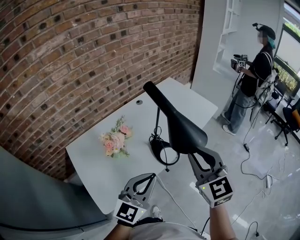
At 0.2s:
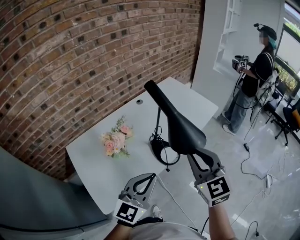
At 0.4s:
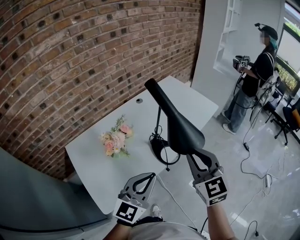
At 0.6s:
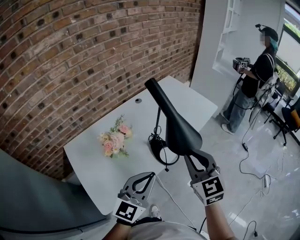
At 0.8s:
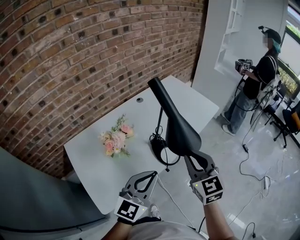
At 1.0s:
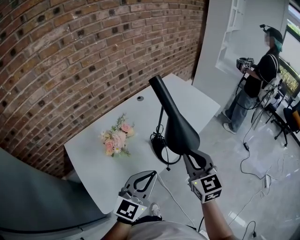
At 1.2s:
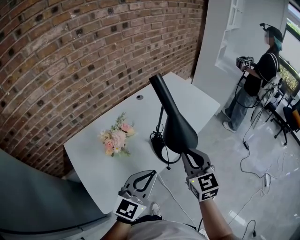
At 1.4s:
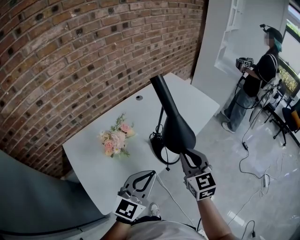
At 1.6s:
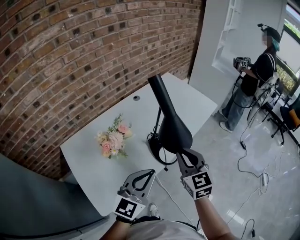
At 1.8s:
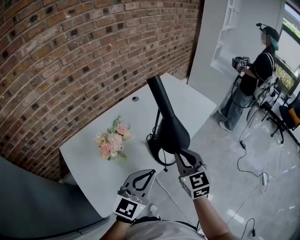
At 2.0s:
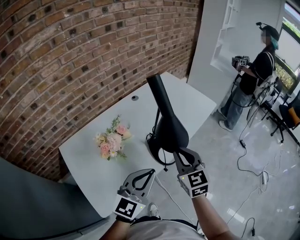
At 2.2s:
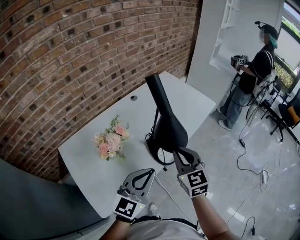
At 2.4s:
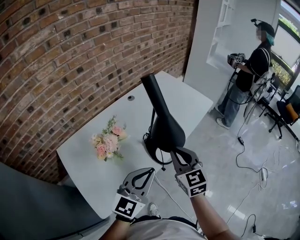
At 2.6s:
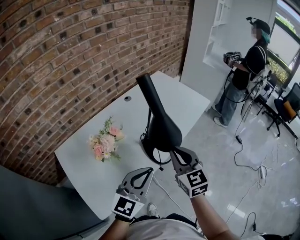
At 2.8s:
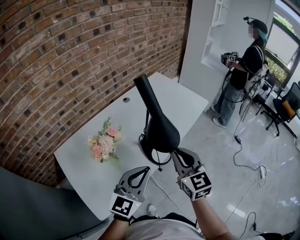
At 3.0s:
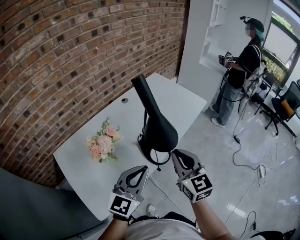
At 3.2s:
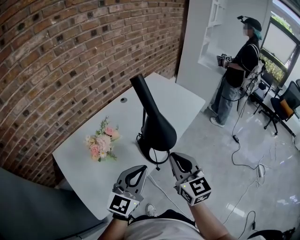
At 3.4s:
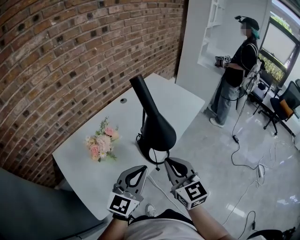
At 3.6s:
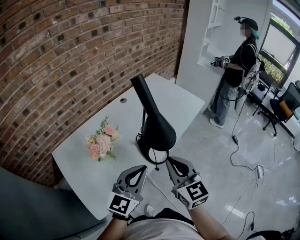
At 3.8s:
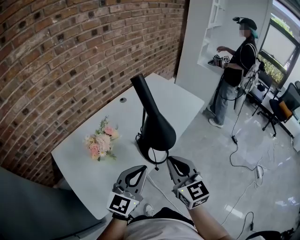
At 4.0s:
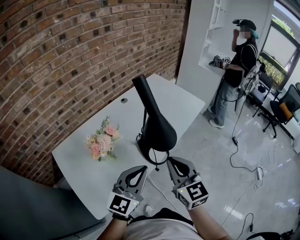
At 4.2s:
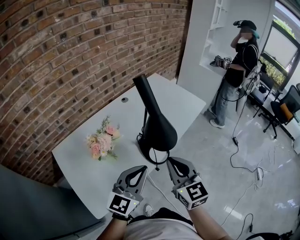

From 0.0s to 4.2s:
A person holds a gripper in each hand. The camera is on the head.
From 0.0s to 1.4s: The right gripper is displaced downward by some 10 cm.
From 1.4s to 4.2s: There are only small adjustments of the grippers.

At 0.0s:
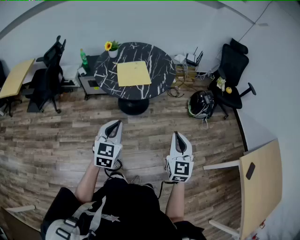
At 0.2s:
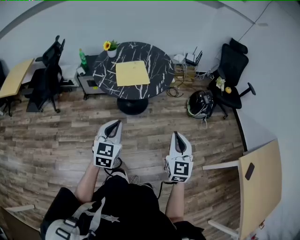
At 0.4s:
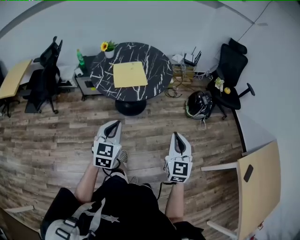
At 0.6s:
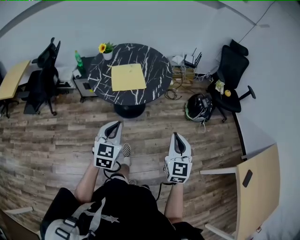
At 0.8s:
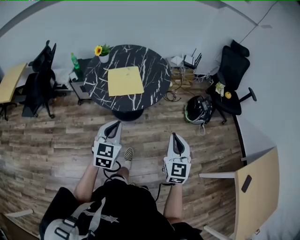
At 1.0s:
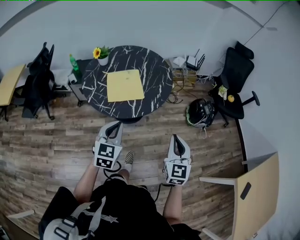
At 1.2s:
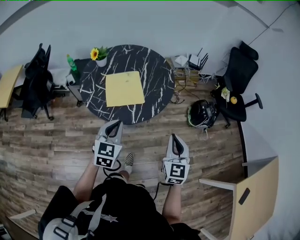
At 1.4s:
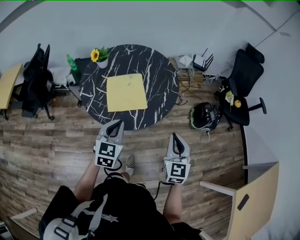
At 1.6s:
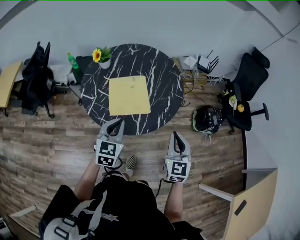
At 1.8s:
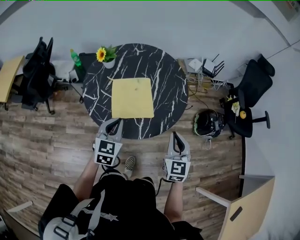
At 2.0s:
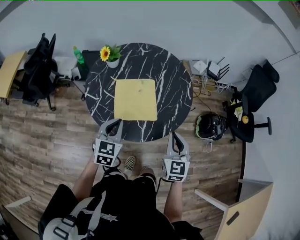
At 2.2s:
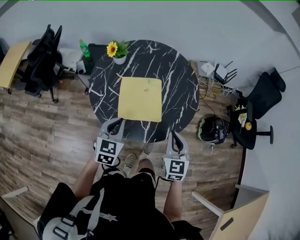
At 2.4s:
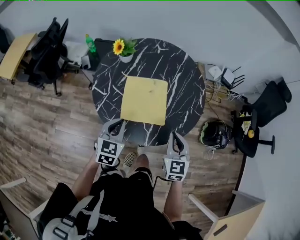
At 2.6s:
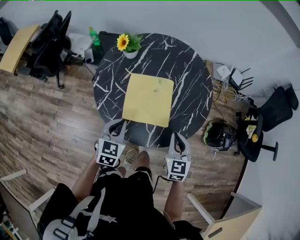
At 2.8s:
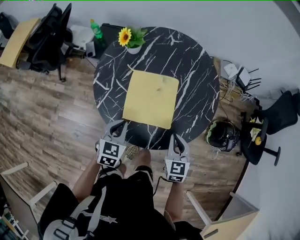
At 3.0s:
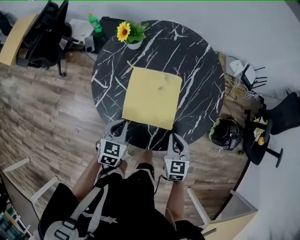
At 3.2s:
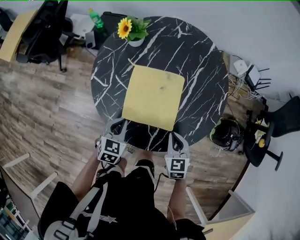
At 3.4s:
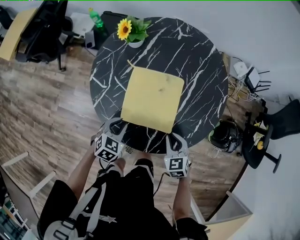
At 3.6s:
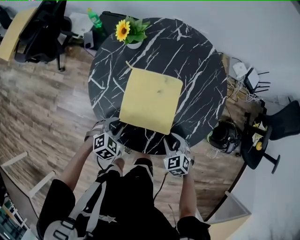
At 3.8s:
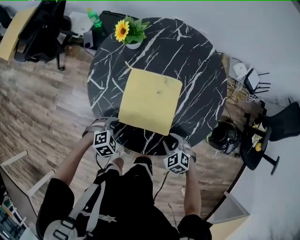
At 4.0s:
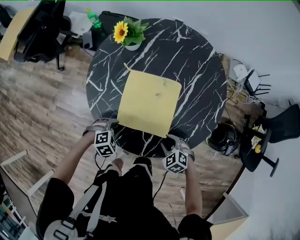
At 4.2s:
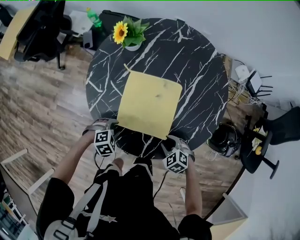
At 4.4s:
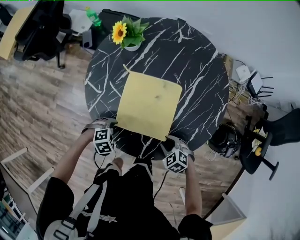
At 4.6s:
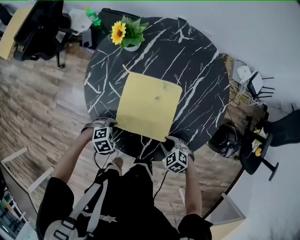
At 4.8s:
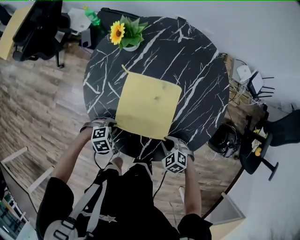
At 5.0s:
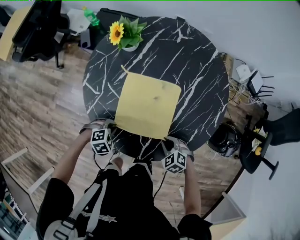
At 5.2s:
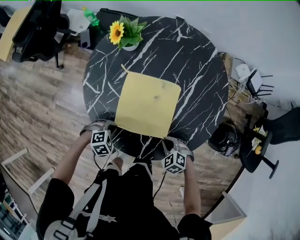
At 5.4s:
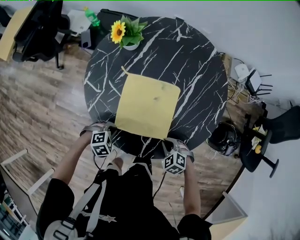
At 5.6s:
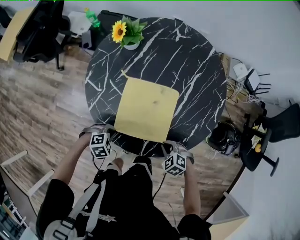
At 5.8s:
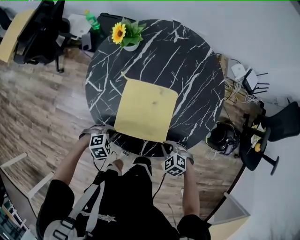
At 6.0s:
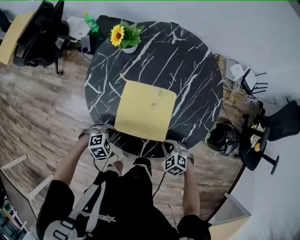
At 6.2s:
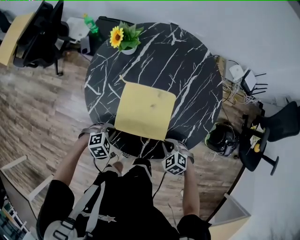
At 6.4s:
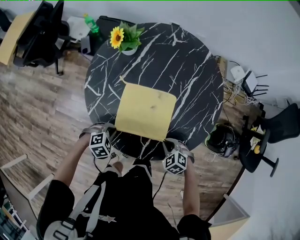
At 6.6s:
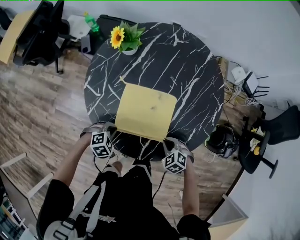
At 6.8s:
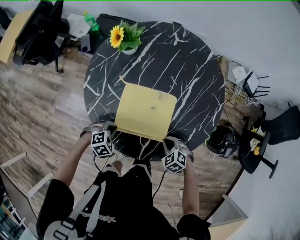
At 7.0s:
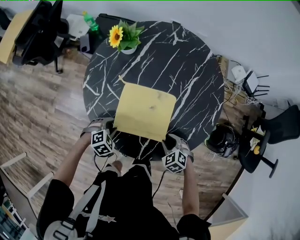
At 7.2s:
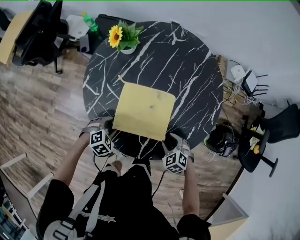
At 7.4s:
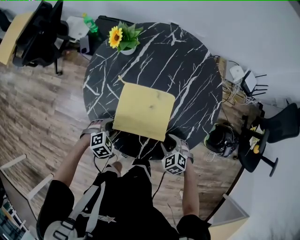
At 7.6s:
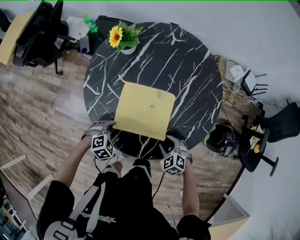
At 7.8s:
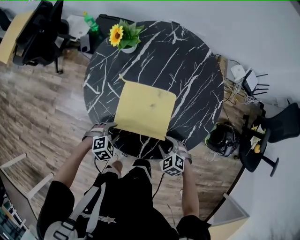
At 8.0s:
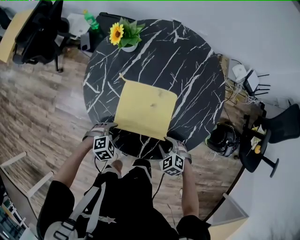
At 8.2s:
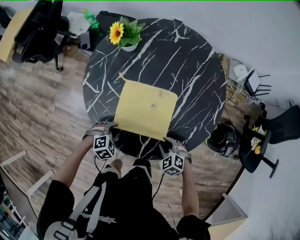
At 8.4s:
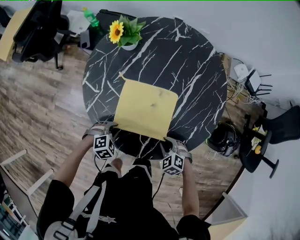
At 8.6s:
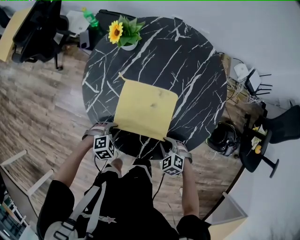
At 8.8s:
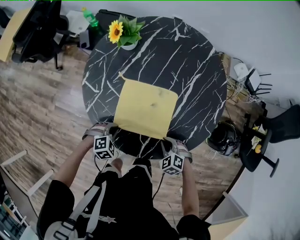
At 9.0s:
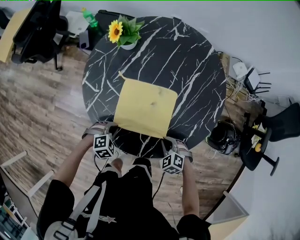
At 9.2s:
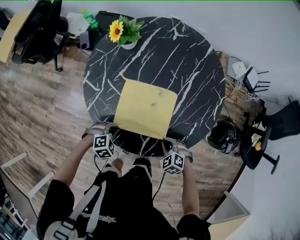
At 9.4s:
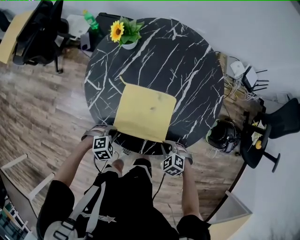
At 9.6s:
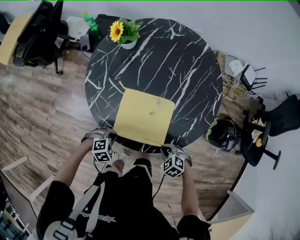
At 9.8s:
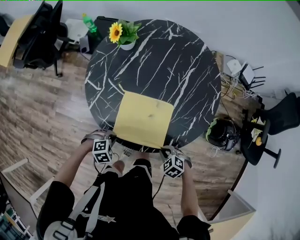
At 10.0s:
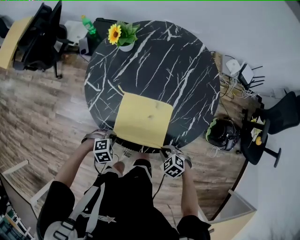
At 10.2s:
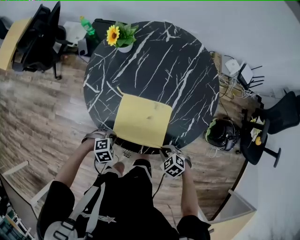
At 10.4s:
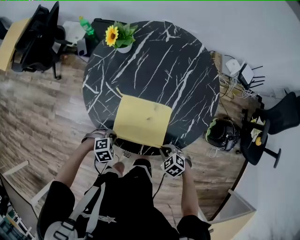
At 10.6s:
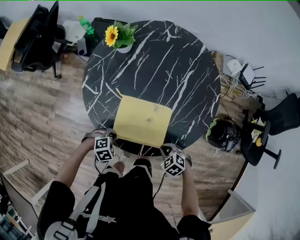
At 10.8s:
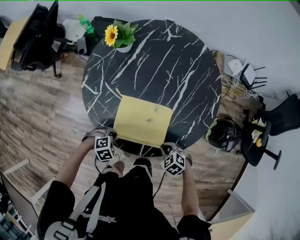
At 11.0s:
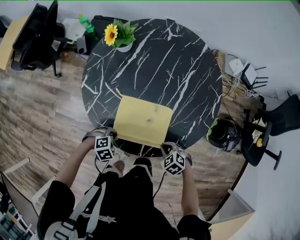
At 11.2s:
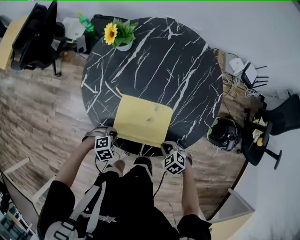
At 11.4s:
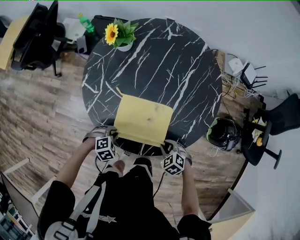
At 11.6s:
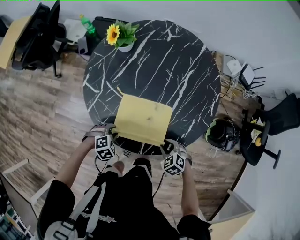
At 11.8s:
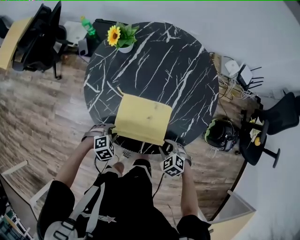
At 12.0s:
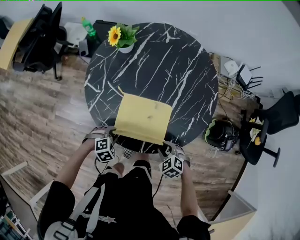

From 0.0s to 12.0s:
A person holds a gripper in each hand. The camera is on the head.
From 0.0s to 1.6s: Both grippers travel together forward, roughly 35 cm.
From 1.6s to 3.0s: The grippers both shift downward, forward and to the left by roughly 25 cm. The right gripper turns by about 30 degrees, while the left gripper changes its angle by roughly 20 degrees.
From 3.0s to 4.4s: The grippers both shift downward by approximately 15 cm. The right gripper changes its angle by roughly 50 degrees, and opens; the left gripper tilts its fingers roughly 30 degrees downward, and opens.
From 4.4s to 6.0s: The right gripper closes its fingers. Meanwhile the left gripper closes.
From 6.0s to 7.6s: The right gripper opens; the left gripper opens its fingers.
From 7.6s to 9.0s: The right gripper closes. Meanwhile the left gripper closes.
From 9.0s to 10.4s: The right gripper moves about 5 cm, while the left gripper moves approximately 5 cm.
From 10.4s to 12.0s: The left gripper opens its fingers. The right gripper opens.

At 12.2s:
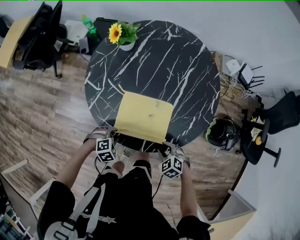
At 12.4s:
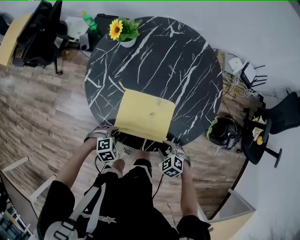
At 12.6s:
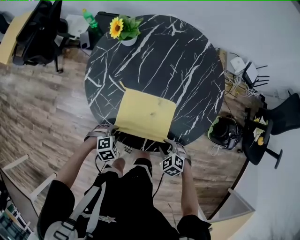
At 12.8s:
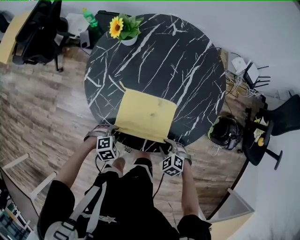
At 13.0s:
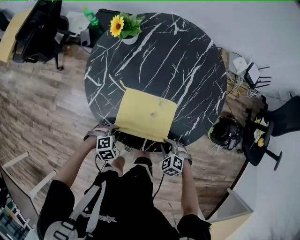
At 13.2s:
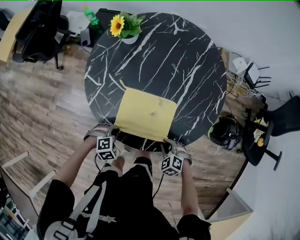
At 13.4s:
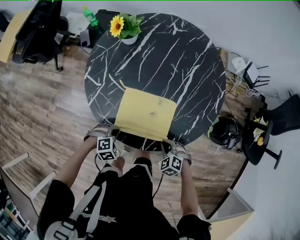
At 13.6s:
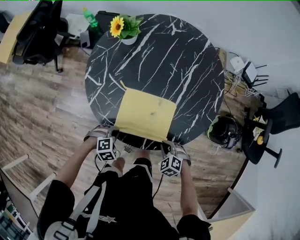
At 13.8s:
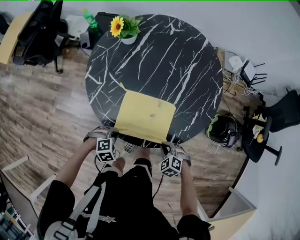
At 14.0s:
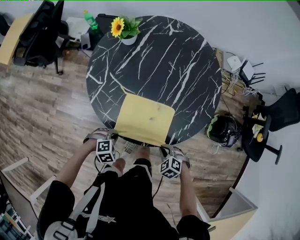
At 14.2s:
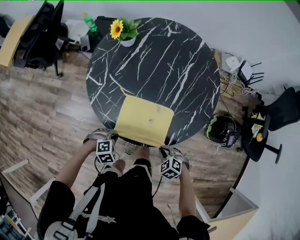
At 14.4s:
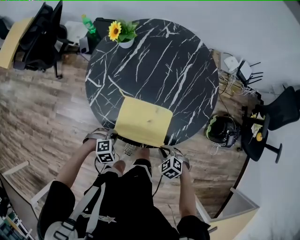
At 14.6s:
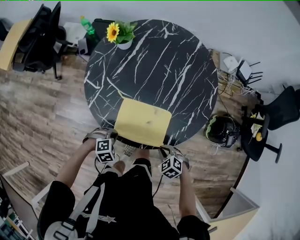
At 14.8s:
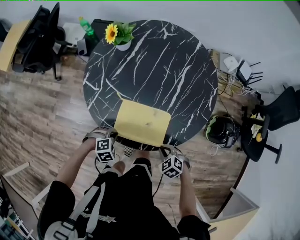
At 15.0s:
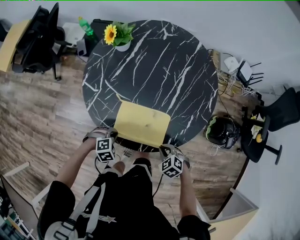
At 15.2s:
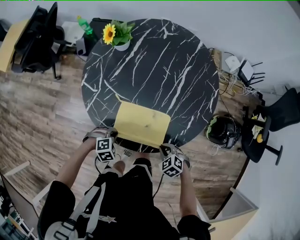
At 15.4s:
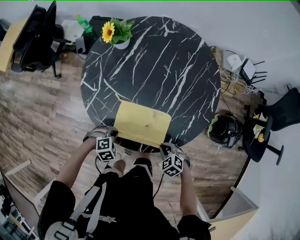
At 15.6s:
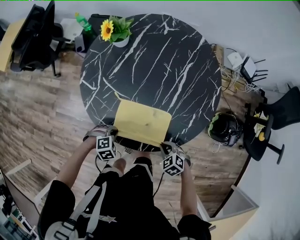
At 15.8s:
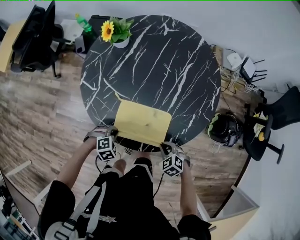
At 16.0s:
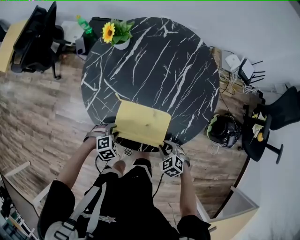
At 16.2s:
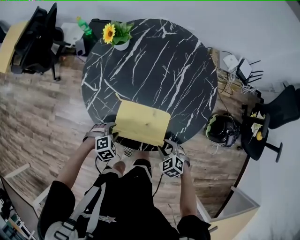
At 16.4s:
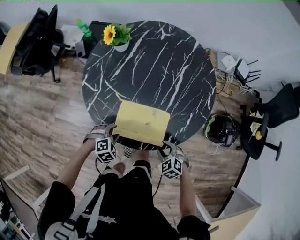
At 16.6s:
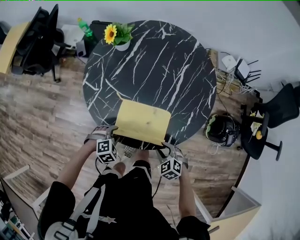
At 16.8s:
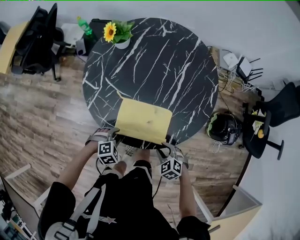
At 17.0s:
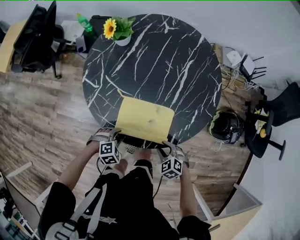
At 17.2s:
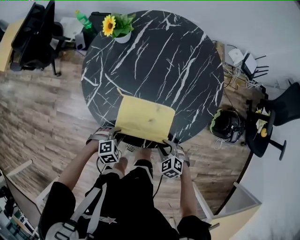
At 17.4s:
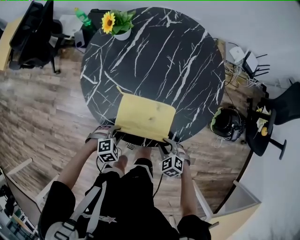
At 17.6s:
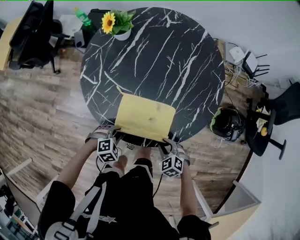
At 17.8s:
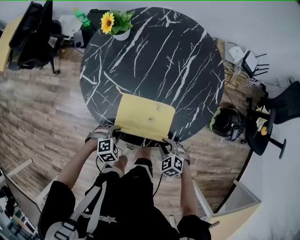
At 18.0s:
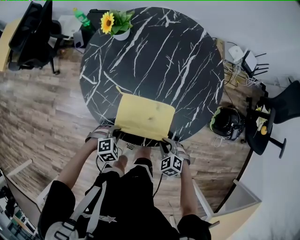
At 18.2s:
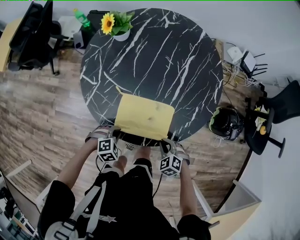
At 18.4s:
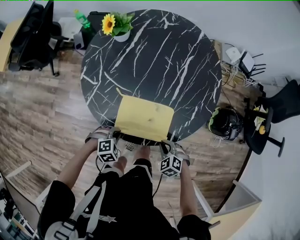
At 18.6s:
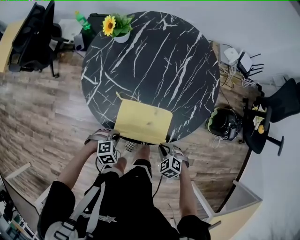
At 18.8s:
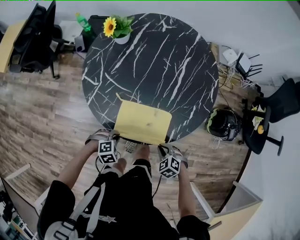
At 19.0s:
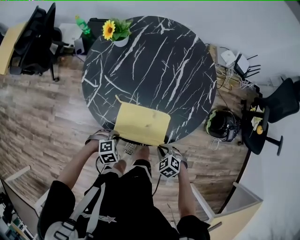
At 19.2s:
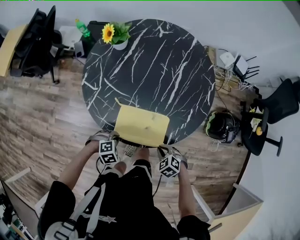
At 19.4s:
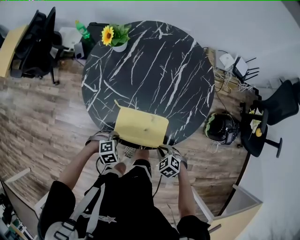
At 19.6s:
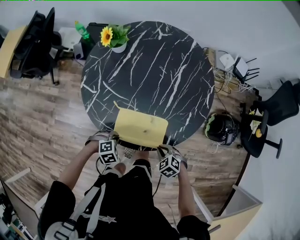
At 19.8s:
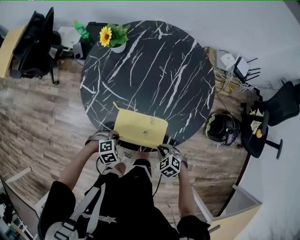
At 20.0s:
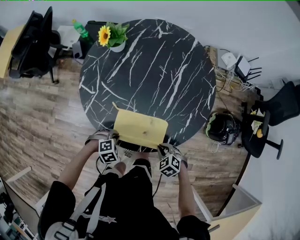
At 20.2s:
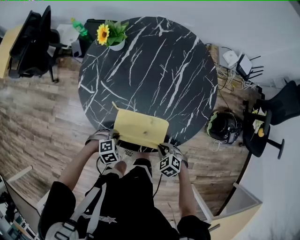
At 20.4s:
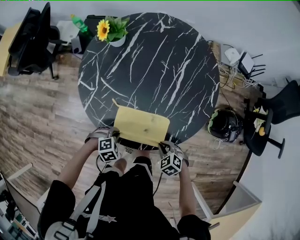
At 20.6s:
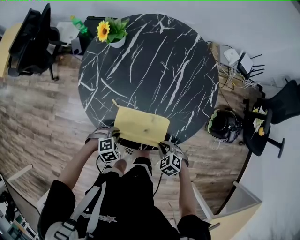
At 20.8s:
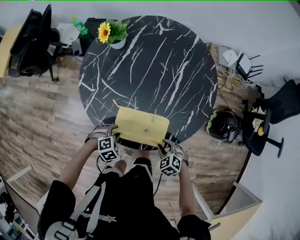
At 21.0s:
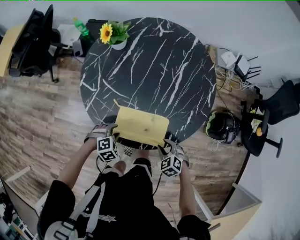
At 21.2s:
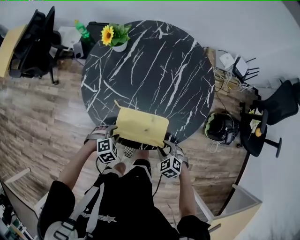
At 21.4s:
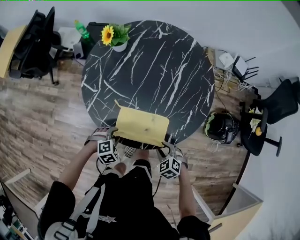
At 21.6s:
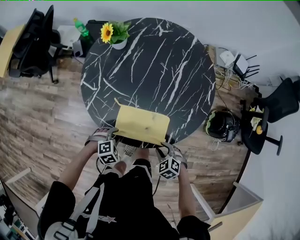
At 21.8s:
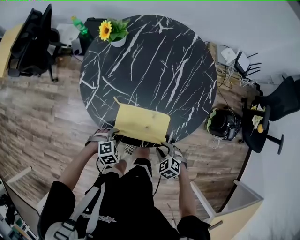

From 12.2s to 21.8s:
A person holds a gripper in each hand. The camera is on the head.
From 12.2s to 13.8s: The right gripper closes its fingers, while the left gripper closes its fingers.
From 13.8s to 15.4s: The grippers stay close to where they were, moving slightly.
From 15.4s to 17.0s: The right gripper opens. The left gripper opens its fingers.
From 17.0s to 18.6s: The right gripper closes up, while the left gripper closes.
From 18.6s to 20.2s: The grippers stay close to where they were, moving slightly.
From 20.2s to 21.8s: The left gripper opens up, while the right gripper opens.
